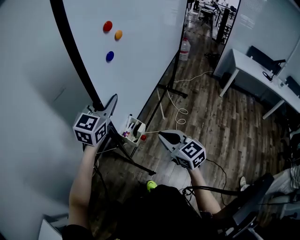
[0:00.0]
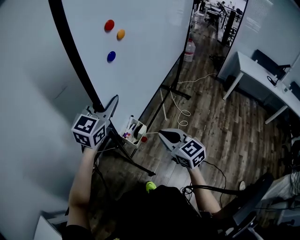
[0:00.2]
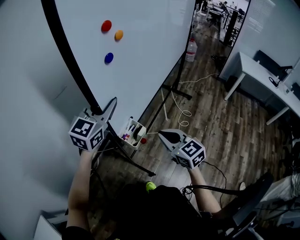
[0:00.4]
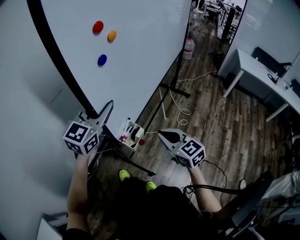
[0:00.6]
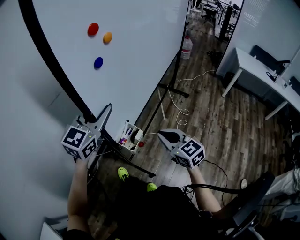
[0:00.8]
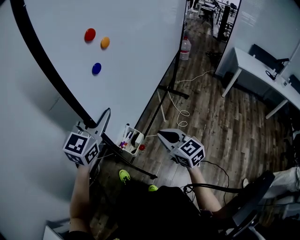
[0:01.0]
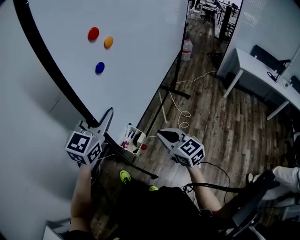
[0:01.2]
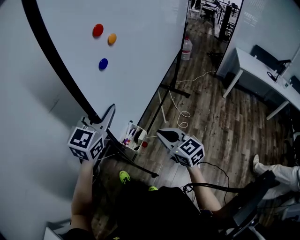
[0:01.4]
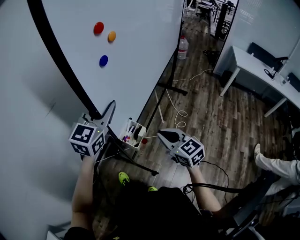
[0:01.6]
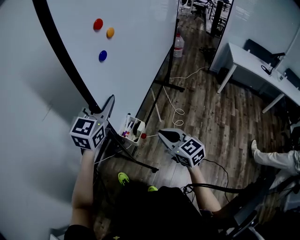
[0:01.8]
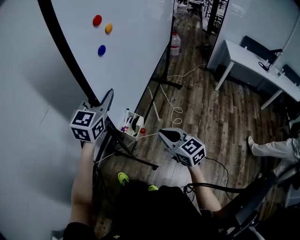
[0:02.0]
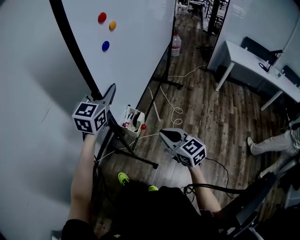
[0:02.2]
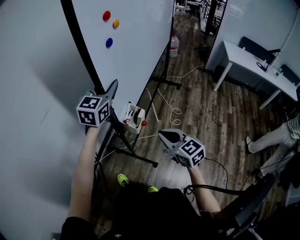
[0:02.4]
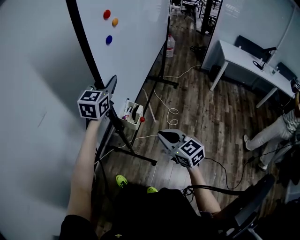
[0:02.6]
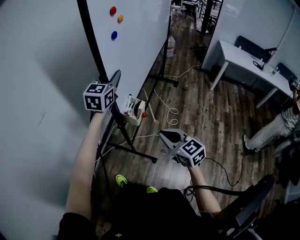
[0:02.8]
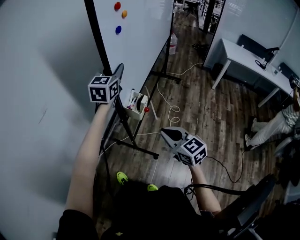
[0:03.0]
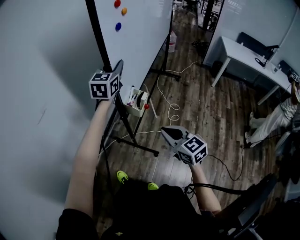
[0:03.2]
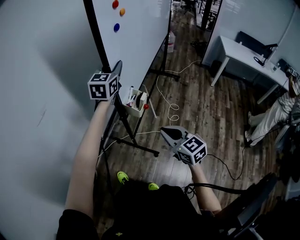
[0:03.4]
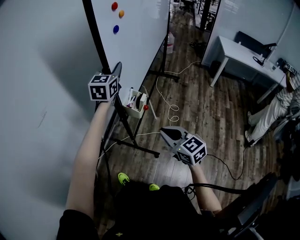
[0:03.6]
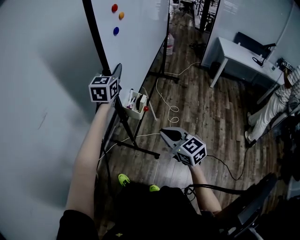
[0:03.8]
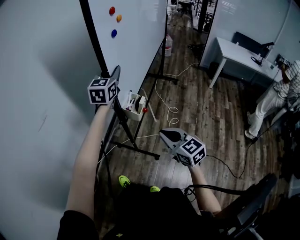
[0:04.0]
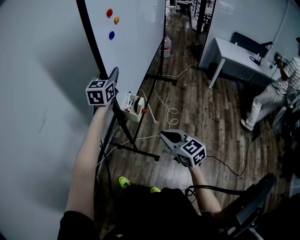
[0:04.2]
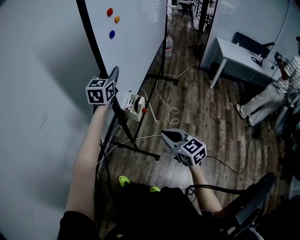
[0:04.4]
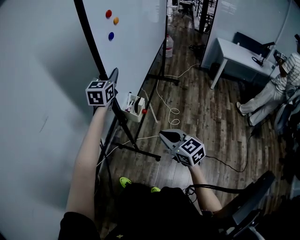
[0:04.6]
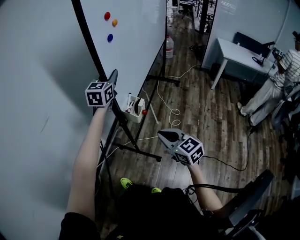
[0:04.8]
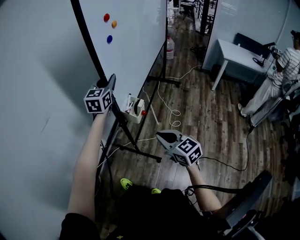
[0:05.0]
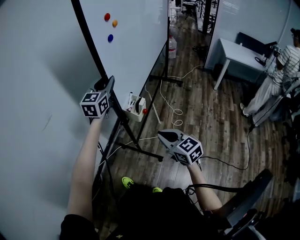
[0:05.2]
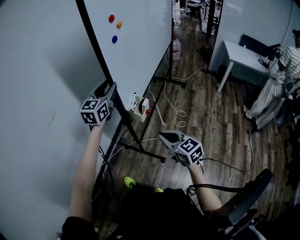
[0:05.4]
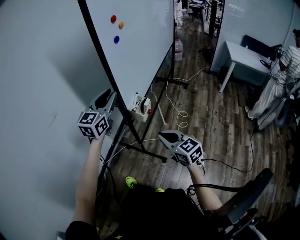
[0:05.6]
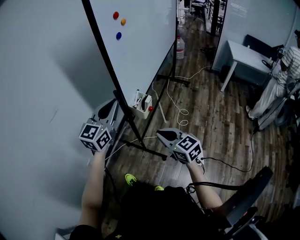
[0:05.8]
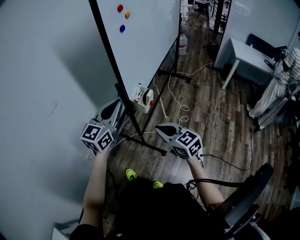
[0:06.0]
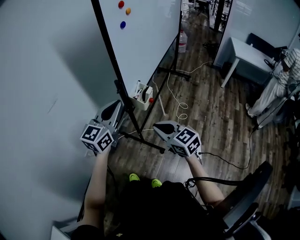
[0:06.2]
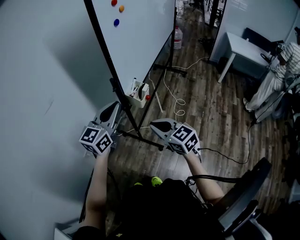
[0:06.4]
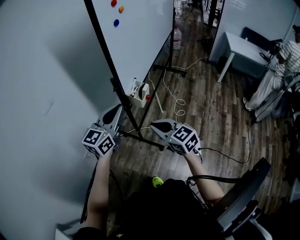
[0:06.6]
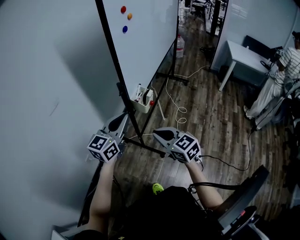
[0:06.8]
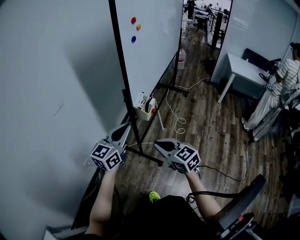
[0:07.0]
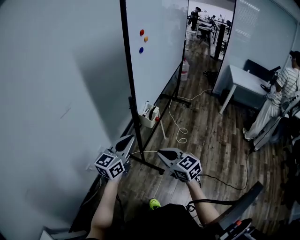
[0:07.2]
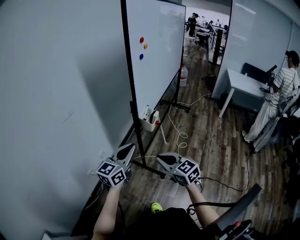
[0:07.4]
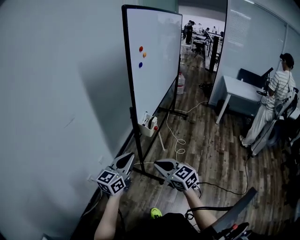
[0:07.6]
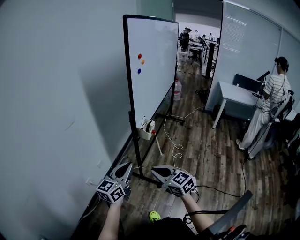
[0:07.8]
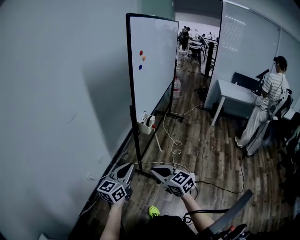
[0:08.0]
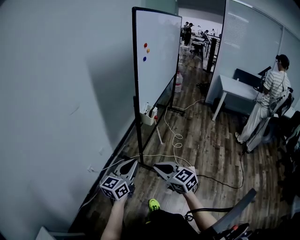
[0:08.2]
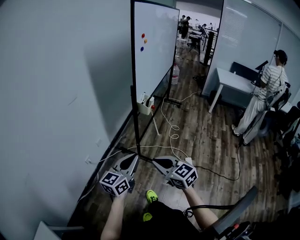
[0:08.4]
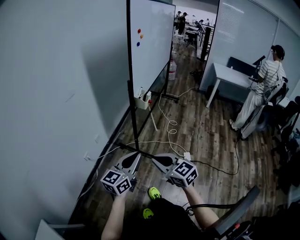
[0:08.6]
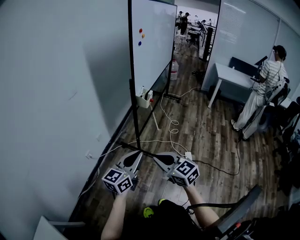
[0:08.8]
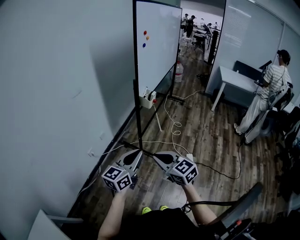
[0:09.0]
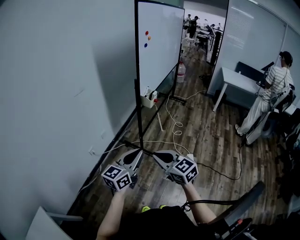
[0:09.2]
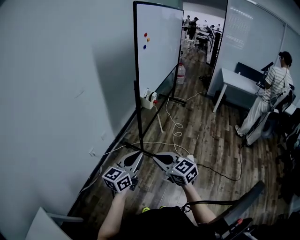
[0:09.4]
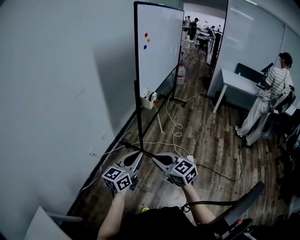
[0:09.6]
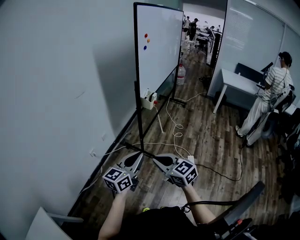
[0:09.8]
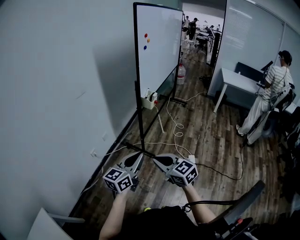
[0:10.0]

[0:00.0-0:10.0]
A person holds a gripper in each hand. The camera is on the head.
0:00.0 to 0:01.4: The right gripper shifts approximately 5 cm forward.
0:01.4 to 0:02.8: The right gripper heads to the right, covering some 10 cm; the left gripper goes about 25 cm forward and to the right.
0:02.8 to 0:04.2: The grippers make only small movements.
0:04.2 to 0:05.8: The left gripper moves backward, roughly 20 cm.
0:05.8 to 0:07.2: The left gripper goes about 15 cm backward and downward; the right gripper heads backward, covering some 5 cm.
0:07.2 to 0:08.6: Both grippers travel together backward, about 25 cm.
0:08.6 to 0:10.0: The grippers make only small movements.

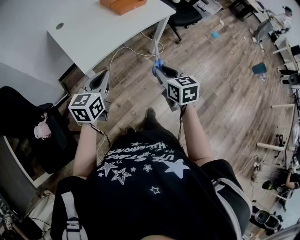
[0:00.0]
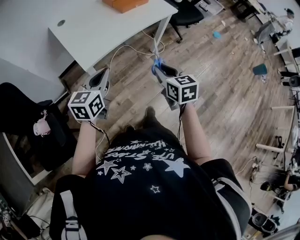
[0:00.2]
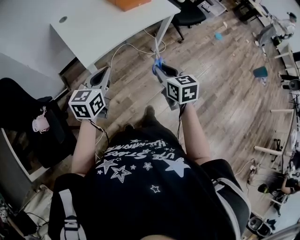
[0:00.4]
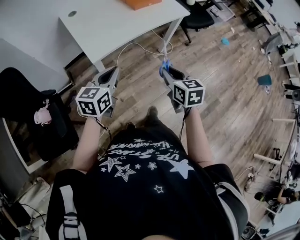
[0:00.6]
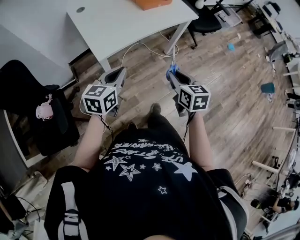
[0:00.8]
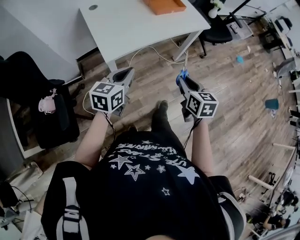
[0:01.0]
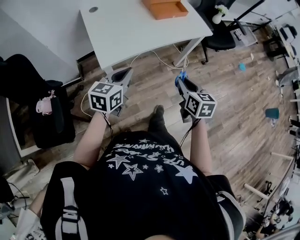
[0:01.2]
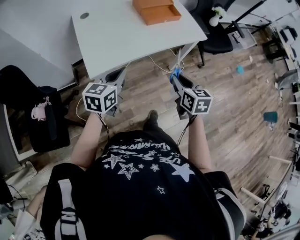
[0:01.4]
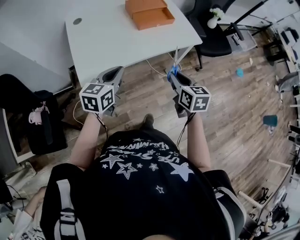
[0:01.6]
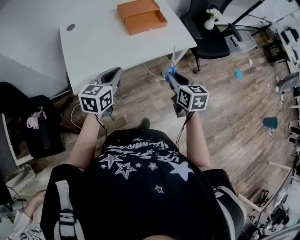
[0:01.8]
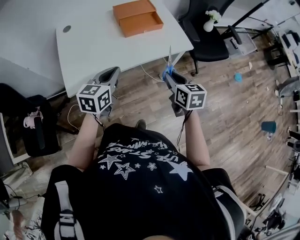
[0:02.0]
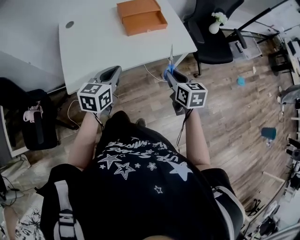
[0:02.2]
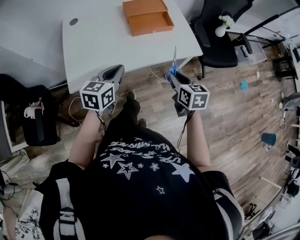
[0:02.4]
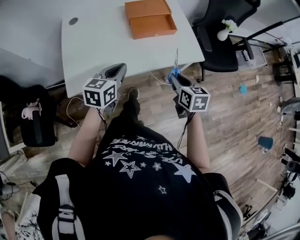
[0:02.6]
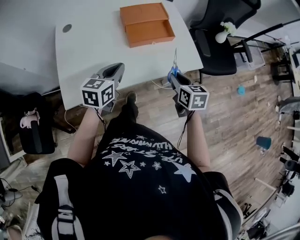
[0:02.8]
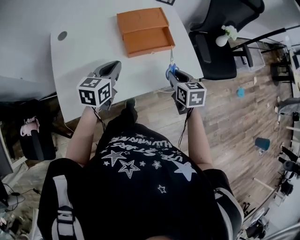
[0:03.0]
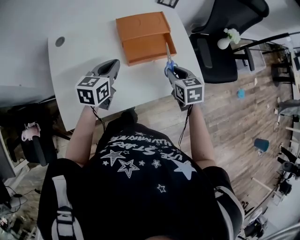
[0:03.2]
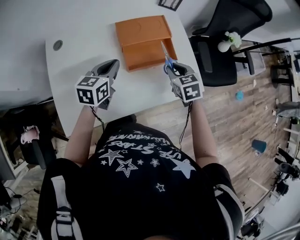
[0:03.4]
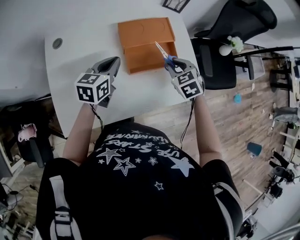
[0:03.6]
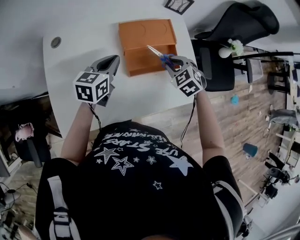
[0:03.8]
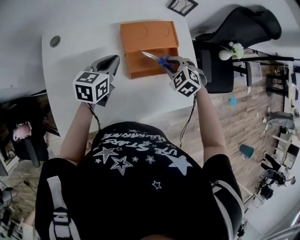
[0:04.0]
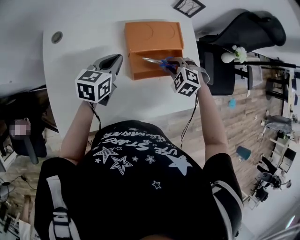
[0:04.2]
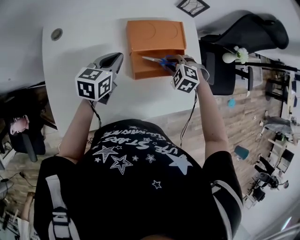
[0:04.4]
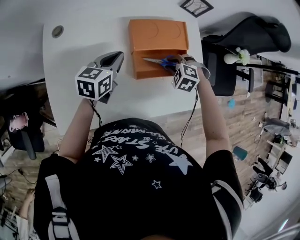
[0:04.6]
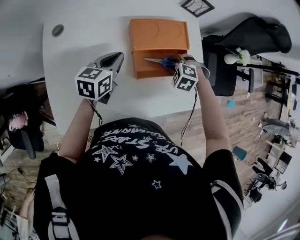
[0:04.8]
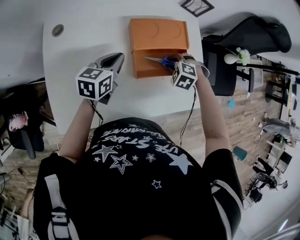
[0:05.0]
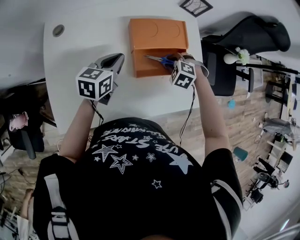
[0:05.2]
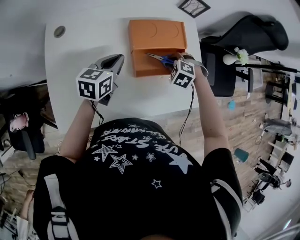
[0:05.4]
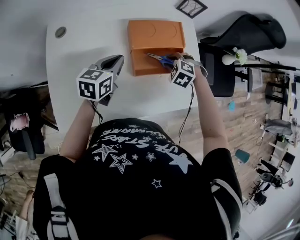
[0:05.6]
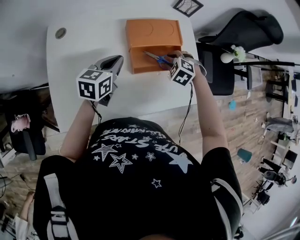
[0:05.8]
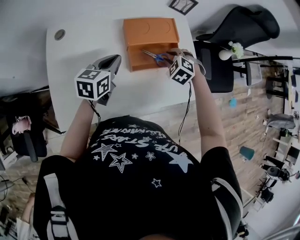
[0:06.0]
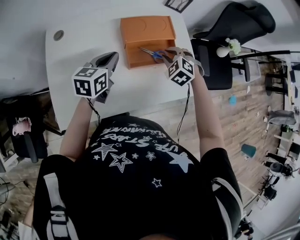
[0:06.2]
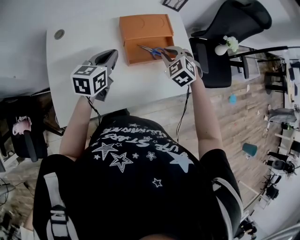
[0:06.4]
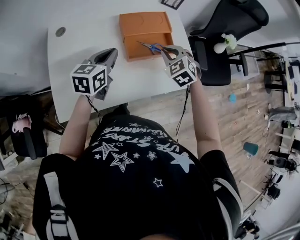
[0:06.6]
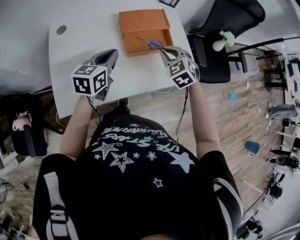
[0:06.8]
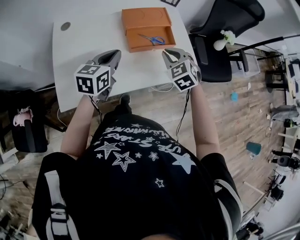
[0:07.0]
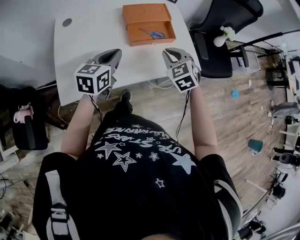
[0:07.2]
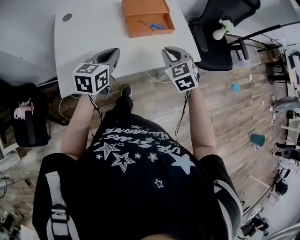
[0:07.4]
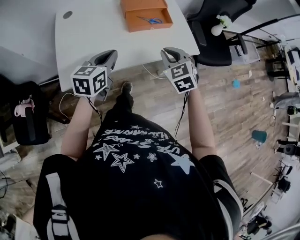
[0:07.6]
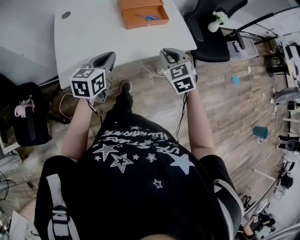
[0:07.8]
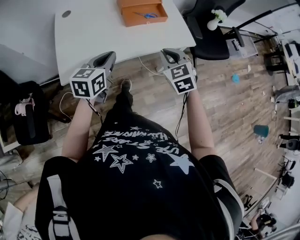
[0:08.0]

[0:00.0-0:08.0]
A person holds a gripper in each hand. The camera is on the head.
0:00.0 to 0:01.6: Both grippers travel together forward and to the right, approximately 25 cm.
0:01.6 to 0:03.2: The two grippers go approximately 35 cm forward. The right gripper changes its angle by about 20 degrees.
0:03.2 to 0:04.8: The left gripper ends up some 15 cm from where it was; the right gripper ends up about 20 cm from where it was, and rolls counterclockwise, seen from behind, by some 70 degrees.
0:04.8 to 0:06.4: The left gripper shifts by some 10 cm. Meanwhile the right gripper shifts roughly 10 cm upward, and changes its angle by about 30 degrees.
0:06.4 to 0:08.0: Both grippers move backward, some 35 cm. The right gripper changes its angle by some 30 degrees.

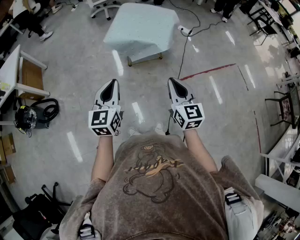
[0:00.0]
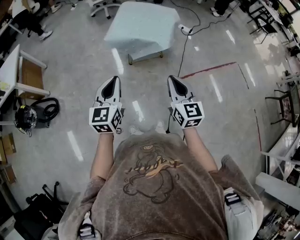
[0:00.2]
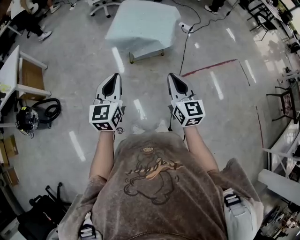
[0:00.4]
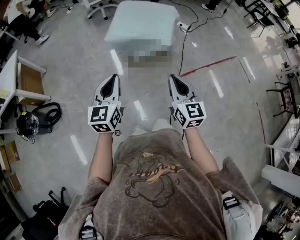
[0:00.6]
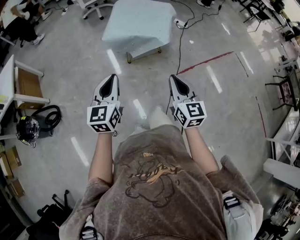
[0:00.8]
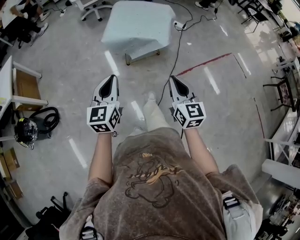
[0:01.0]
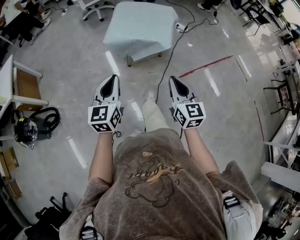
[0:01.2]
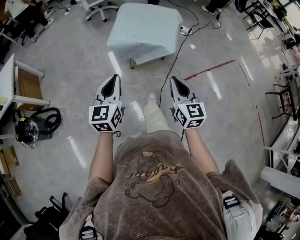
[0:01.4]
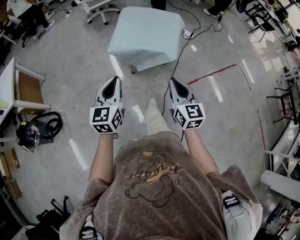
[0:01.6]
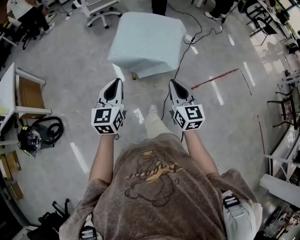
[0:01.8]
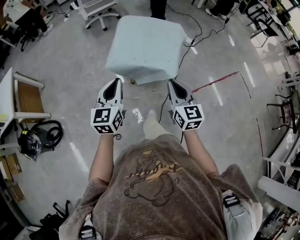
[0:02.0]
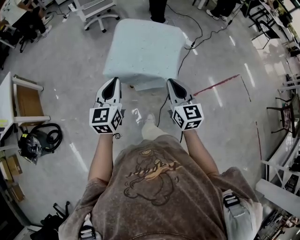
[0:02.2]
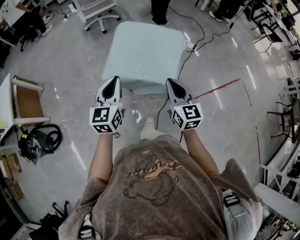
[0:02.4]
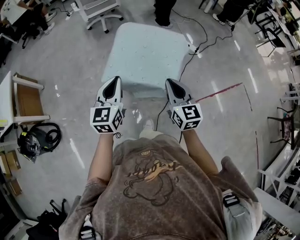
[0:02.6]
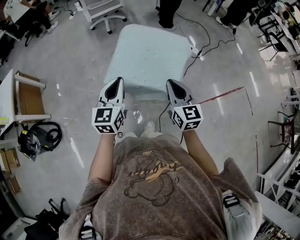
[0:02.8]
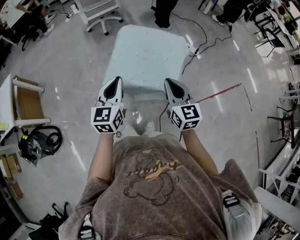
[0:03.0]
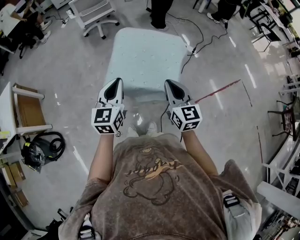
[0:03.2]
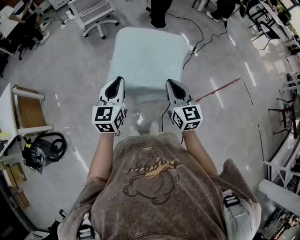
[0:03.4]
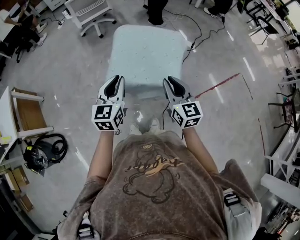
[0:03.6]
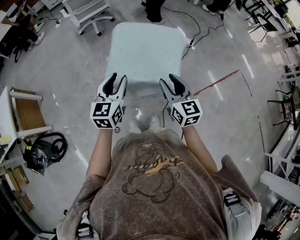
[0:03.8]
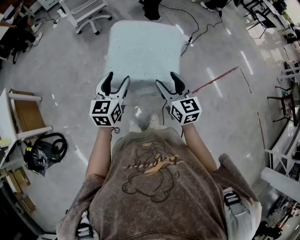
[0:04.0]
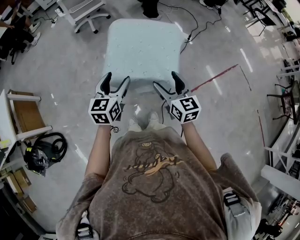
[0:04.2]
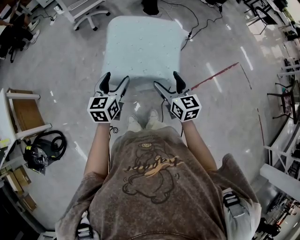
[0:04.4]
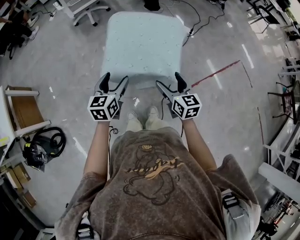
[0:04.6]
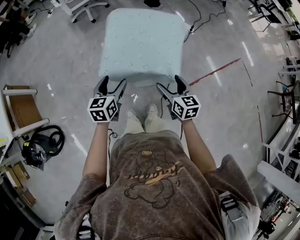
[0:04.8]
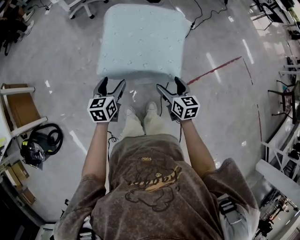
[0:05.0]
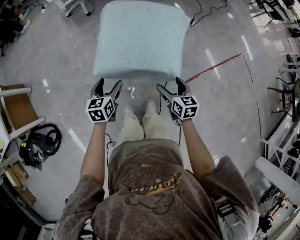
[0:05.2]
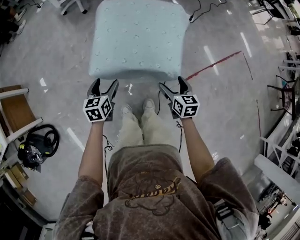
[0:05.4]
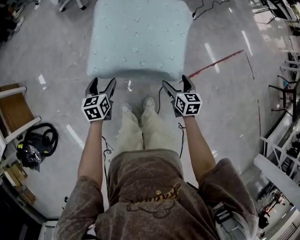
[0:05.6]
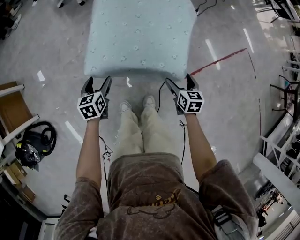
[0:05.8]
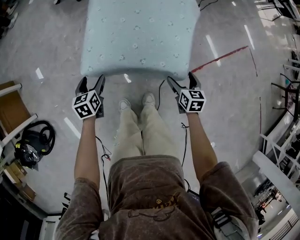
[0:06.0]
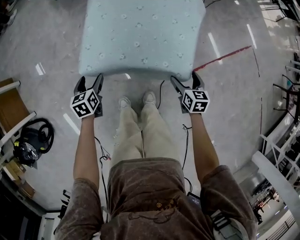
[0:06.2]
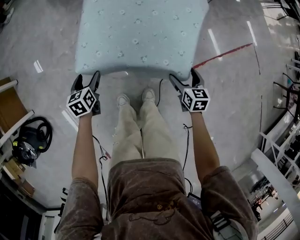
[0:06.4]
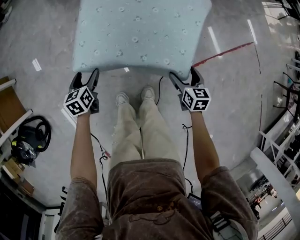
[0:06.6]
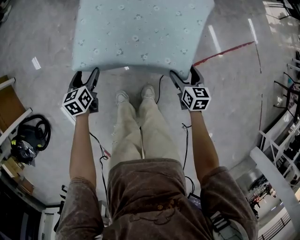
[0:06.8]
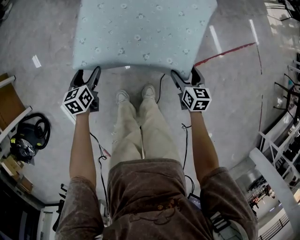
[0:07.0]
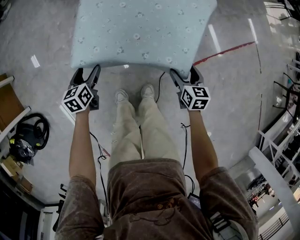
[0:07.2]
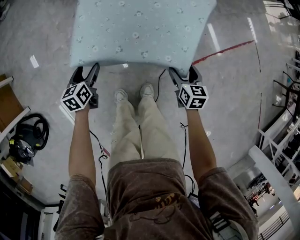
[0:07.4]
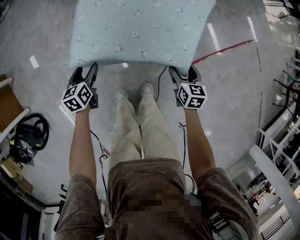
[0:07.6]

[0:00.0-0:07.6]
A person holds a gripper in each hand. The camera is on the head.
0:00.0 to 0:01.6: The grippers both shift forward and to the left by approximately 15 cm.
0:01.6 to 0:03.0: Both grippers move forward, some 25 cm.
0:03.0 to 0:04.6: Both grippers move downward, about 10 cm. The left gripper opens its fingers. Meanwhile the right gripper opens up.
0:04.6 to 0:06.0: Both grippers travel together downward, some 25 cm. The left gripper turns by some 20 degrees. The right gripper changes its angle by roughly 20 degrees.
0:06.0 to 0:07.6: The left gripper heads downward, covering approximately 5 cm.
